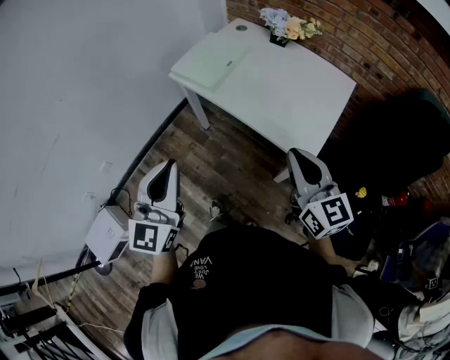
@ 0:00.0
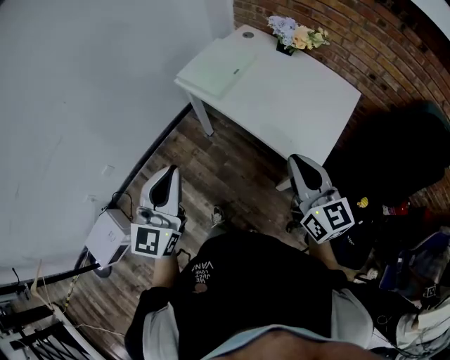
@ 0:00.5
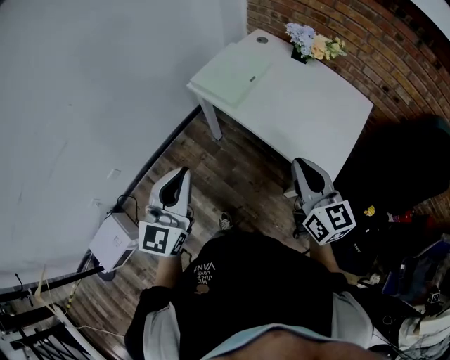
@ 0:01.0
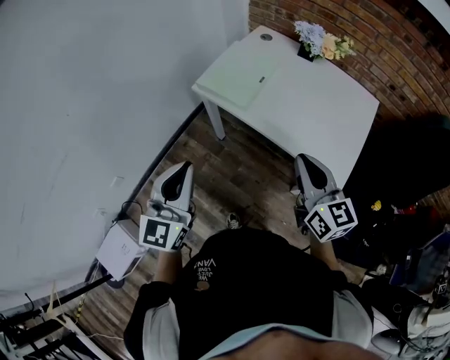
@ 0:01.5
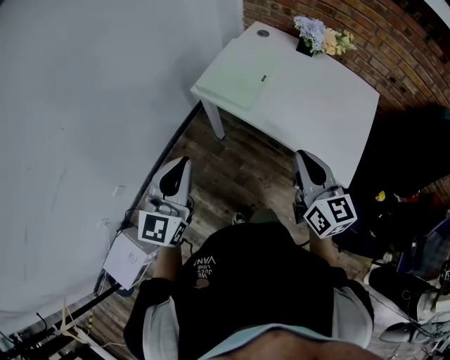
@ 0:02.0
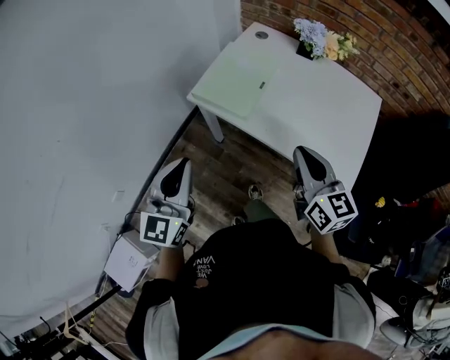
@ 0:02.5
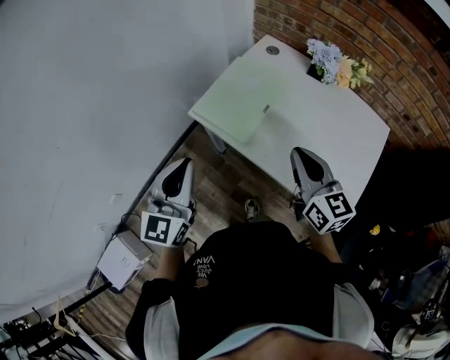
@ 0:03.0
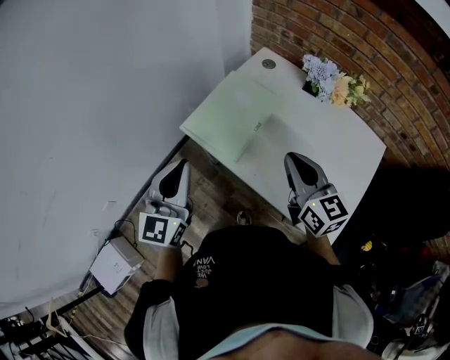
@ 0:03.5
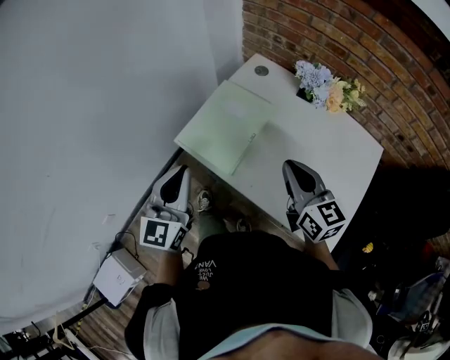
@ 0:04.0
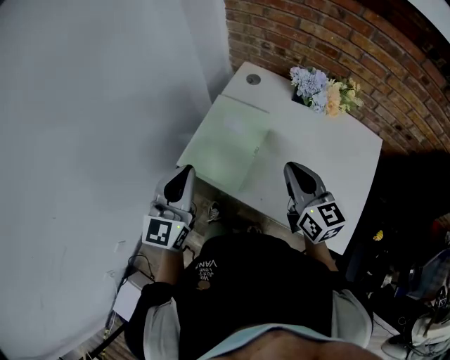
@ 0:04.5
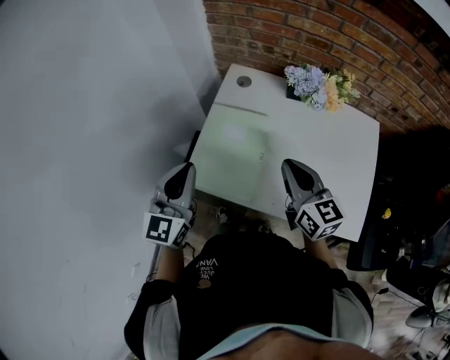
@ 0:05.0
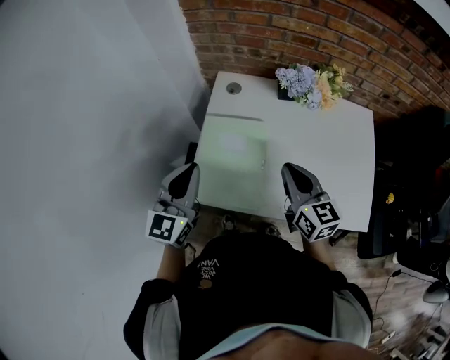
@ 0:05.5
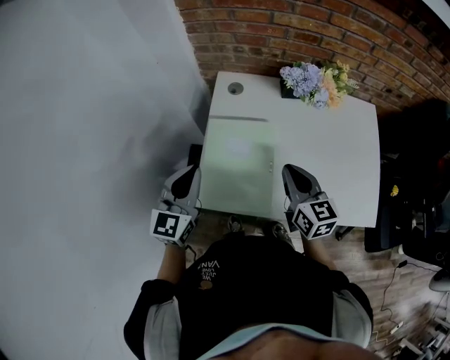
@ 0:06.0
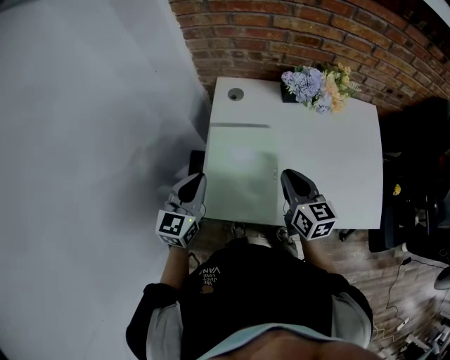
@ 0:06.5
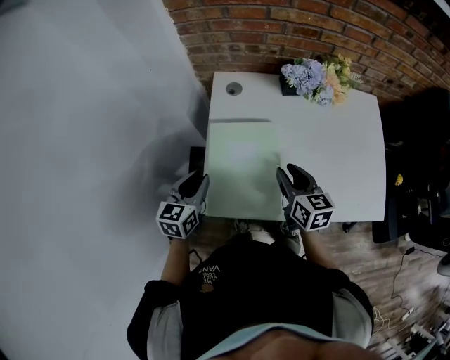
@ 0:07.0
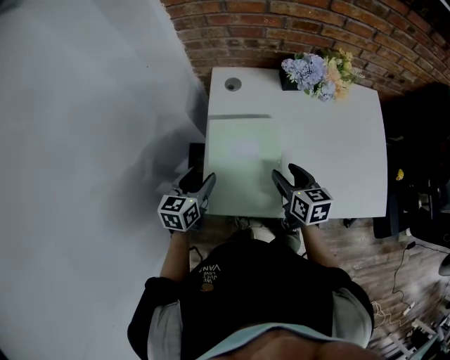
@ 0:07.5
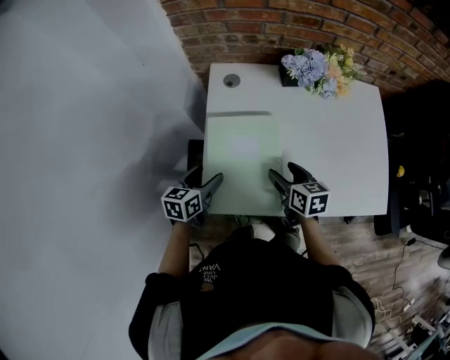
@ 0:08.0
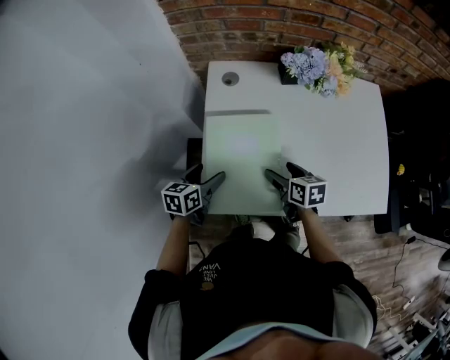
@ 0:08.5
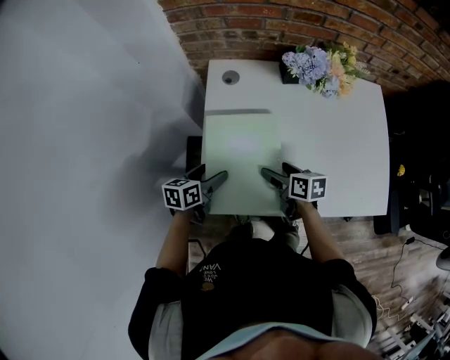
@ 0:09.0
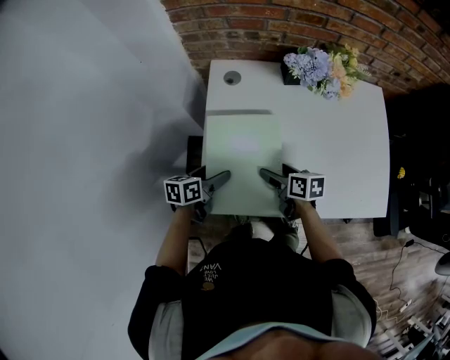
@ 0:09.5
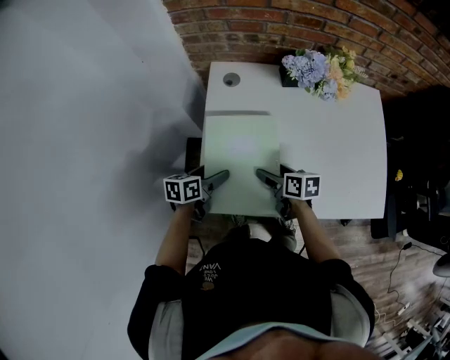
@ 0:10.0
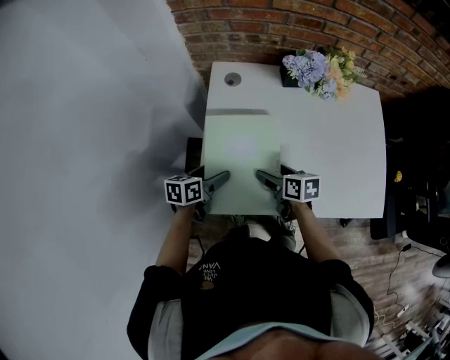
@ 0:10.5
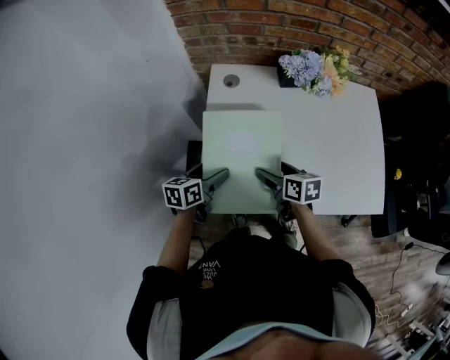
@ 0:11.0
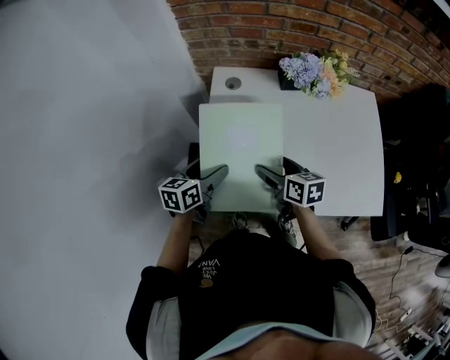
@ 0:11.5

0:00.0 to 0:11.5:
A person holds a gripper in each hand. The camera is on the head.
0:00.0 to 0:02.0: The left gripper shifts some 20 cm forward and to the left. Meanwhile the right gripper is displaced to the left and forward by roughly 20 cm.
0:02.0 to 0:04.0: The grippers both shift forward by some 20 cm.
0:04.0 to 0:06.0: The left gripper changes place by some 25 cm, and swivels some 30 degrees; the right gripper ends up approximately 15 cm from where it was, and turns by approximately 30 degrees.
0:06.0 to 0:07.5: Both grippers travel together downward, roughly 15 cm. The left gripper swivels roughly 30 degrees, and opens up, while the right gripper opens up.
0:07.5 to 0:09.5: Both grippers move downward, roughly 10 cm. The right gripper turns by roughly 20 degrees, and opens up; the left gripper rotates approximately 30 degrees, and opens.
0:09.5 to 0:11.5: The grippers both shift upward by roughly 10 cm.

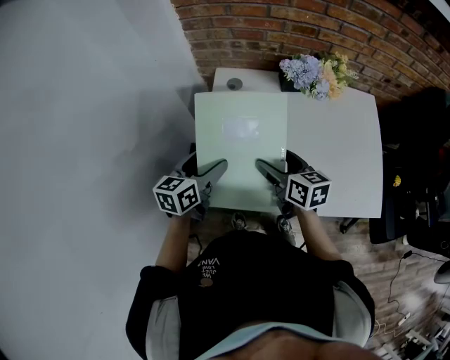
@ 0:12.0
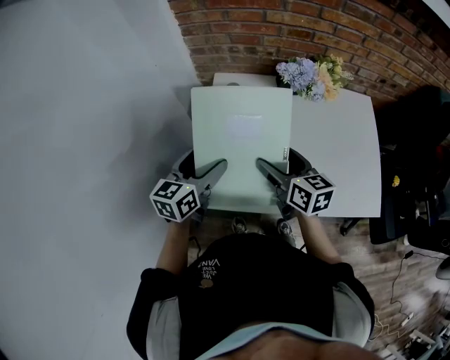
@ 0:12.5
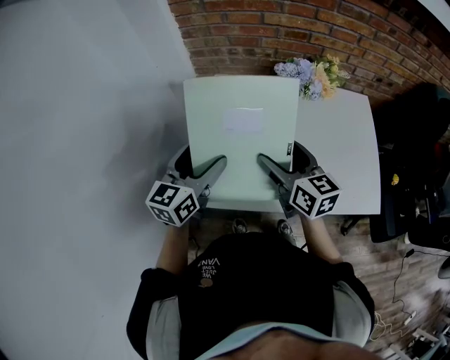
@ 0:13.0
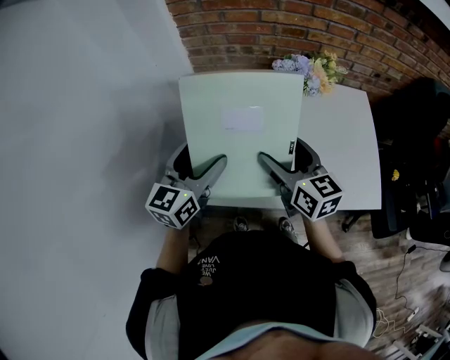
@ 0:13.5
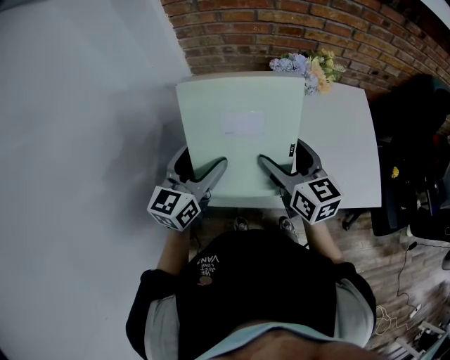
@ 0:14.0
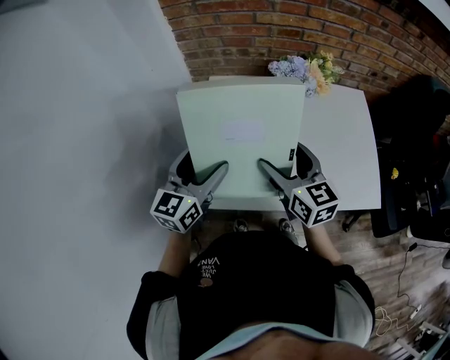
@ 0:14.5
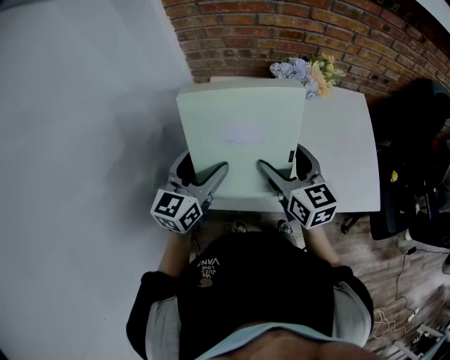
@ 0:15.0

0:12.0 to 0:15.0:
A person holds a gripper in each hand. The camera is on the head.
0:12.0 to 0:13.5: The two grippers go about 10 cm upward. The left gripper rotates about 20 degrees.
0:13.5 to 0:15.0: There are only small adjustments of the grippers.

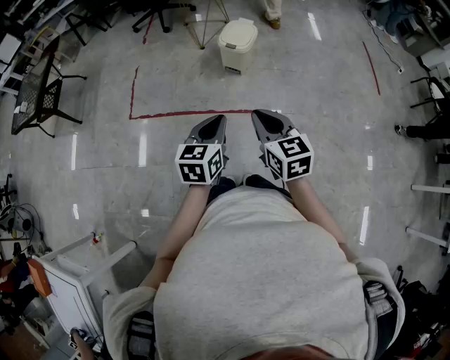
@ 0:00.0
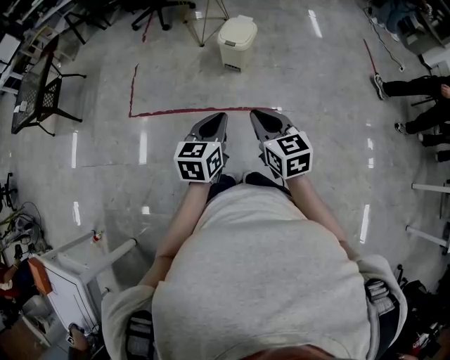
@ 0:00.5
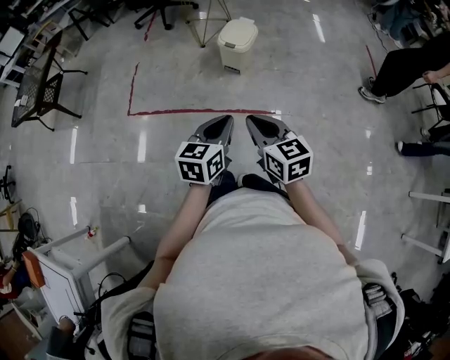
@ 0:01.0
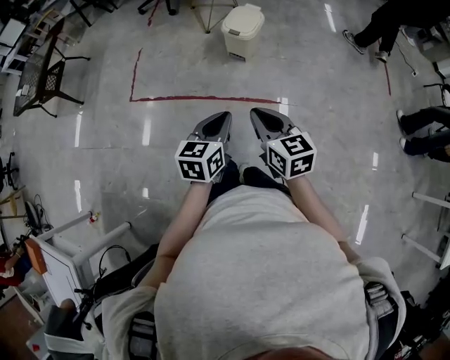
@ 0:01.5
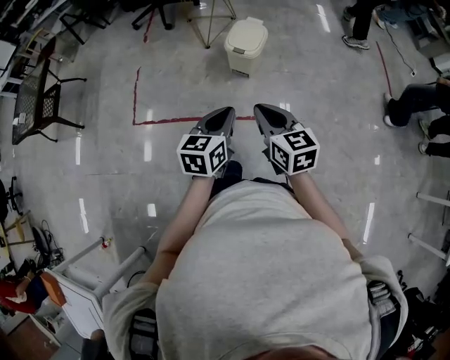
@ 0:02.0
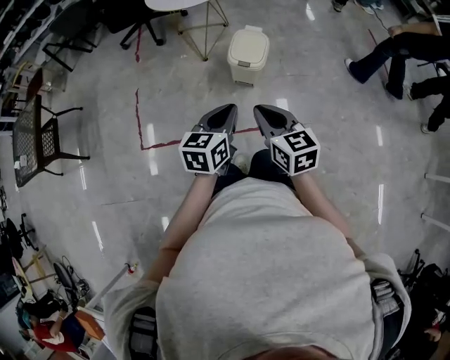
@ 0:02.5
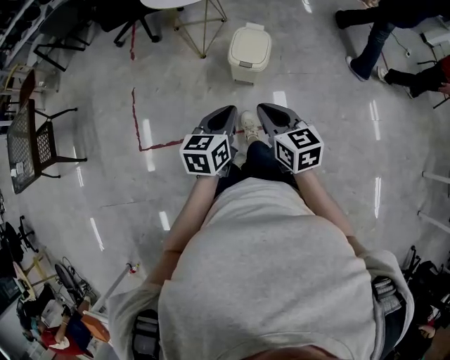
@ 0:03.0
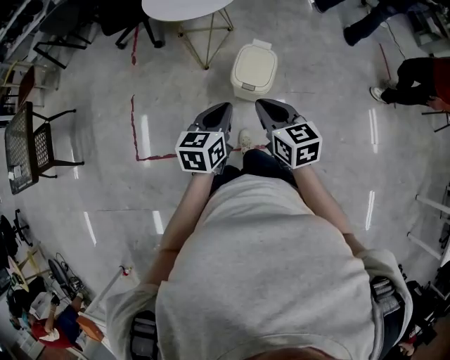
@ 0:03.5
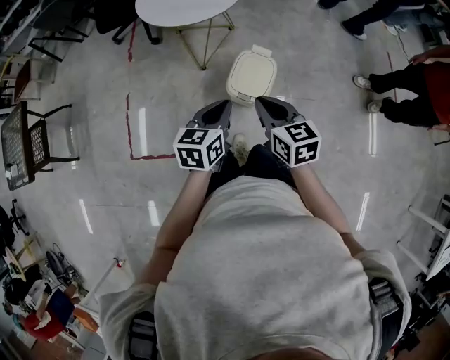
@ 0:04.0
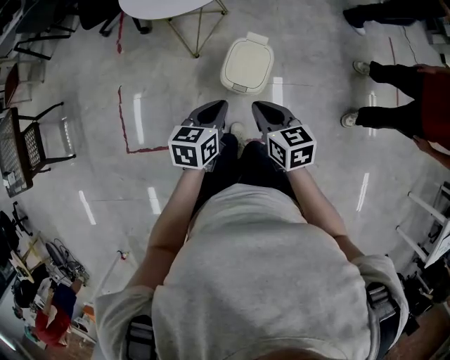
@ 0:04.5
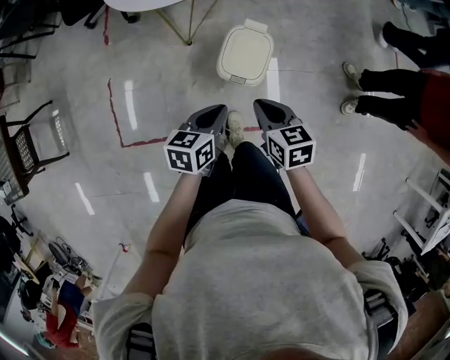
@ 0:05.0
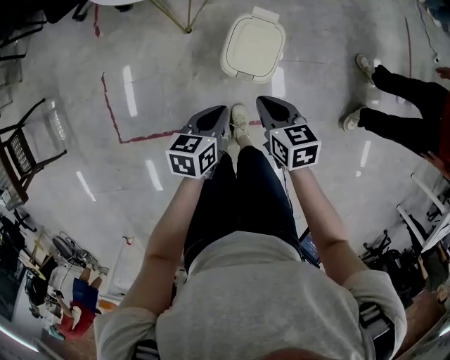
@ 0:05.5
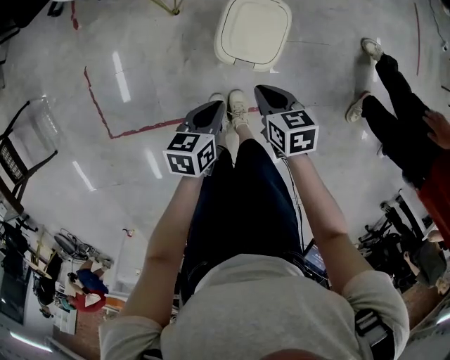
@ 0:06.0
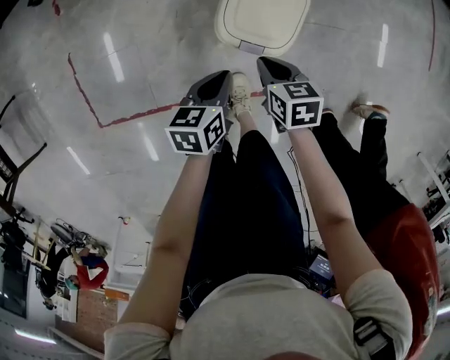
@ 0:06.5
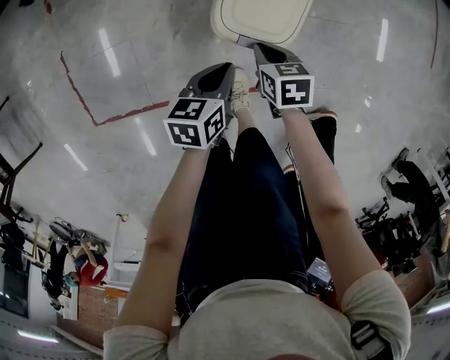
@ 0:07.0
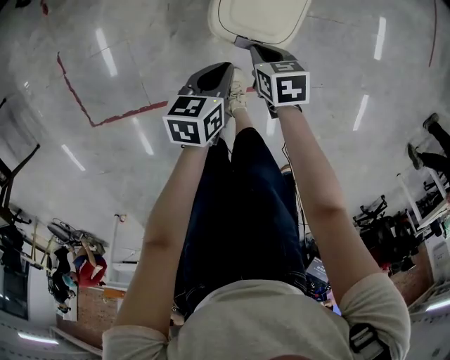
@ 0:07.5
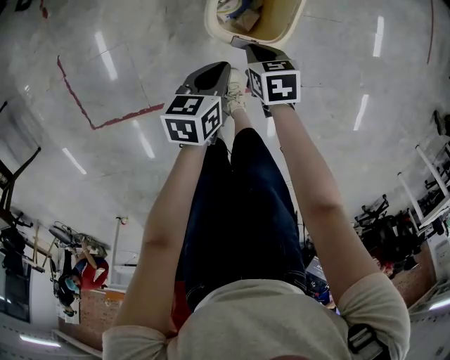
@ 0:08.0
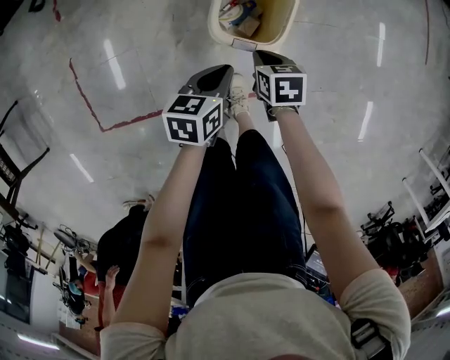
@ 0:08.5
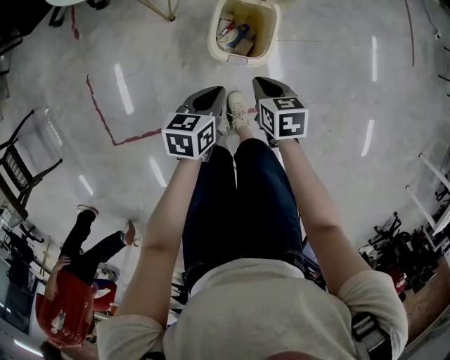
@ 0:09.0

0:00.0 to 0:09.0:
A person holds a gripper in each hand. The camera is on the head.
0:00.0 to 0:02.0: The two grippers go roughly 15 cm forward.
0:02.0 to 0:04.5: The two grippers travel together, forward, about 40 cm.
0:04.5 to 0:07.0: The two grippers go roughly 35 cm downward. The right gripper turns by roughly 30 degrees.
0:07.0 to 0:09.0: Both grippers travel together upward, some 15 cm.

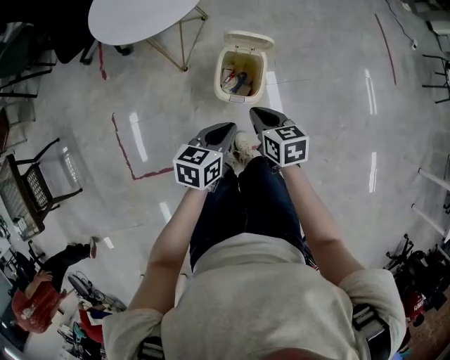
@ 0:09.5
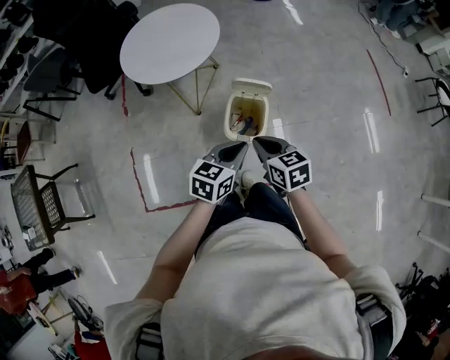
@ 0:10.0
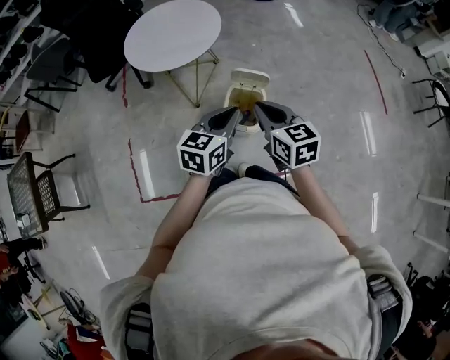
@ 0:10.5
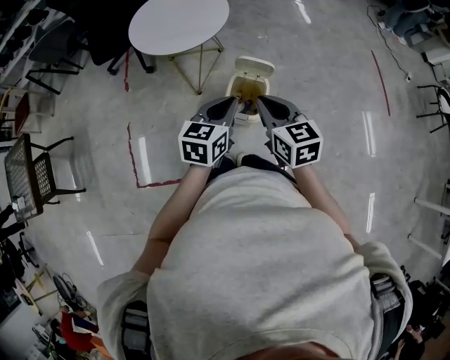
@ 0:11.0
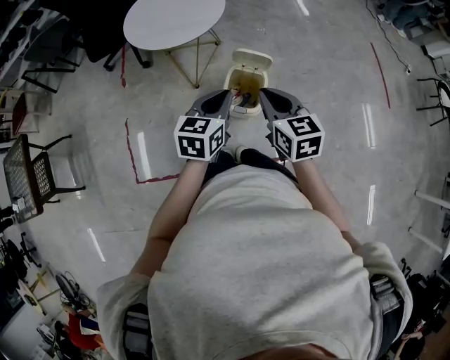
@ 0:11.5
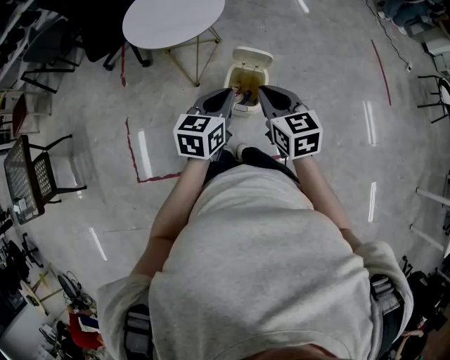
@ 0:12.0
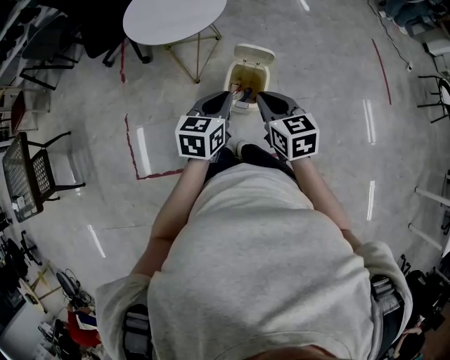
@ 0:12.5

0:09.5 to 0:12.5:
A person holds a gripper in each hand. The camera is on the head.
0:09.5 to 0:11.0: Both grippers travel together upward, roughly 20 cm. The left gripper rotates some 20 degrees. Meanwhile the right gripper rotates roughly 20 degrees.
0:11.0 to 0:12.5: There are only small adjustments of the grippers.
